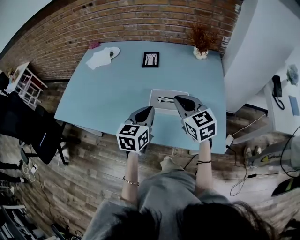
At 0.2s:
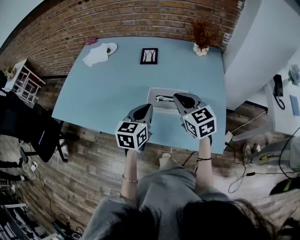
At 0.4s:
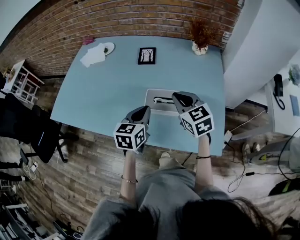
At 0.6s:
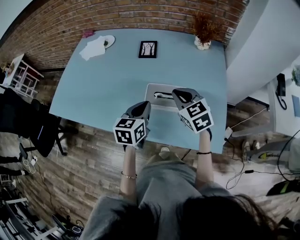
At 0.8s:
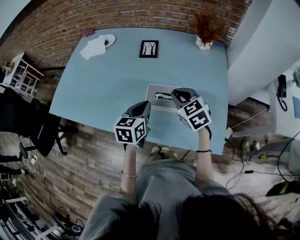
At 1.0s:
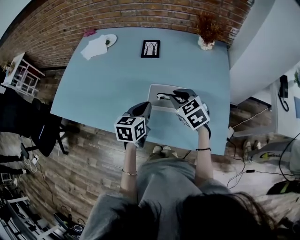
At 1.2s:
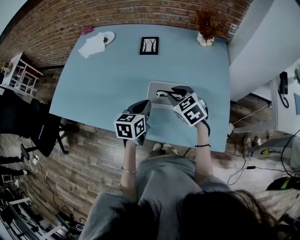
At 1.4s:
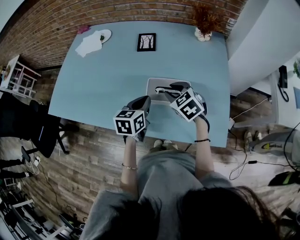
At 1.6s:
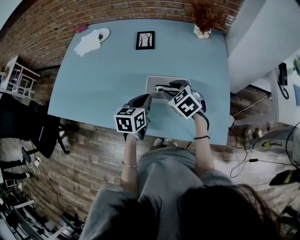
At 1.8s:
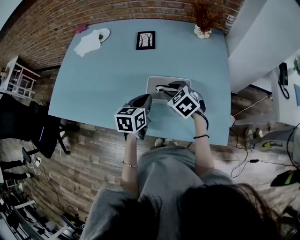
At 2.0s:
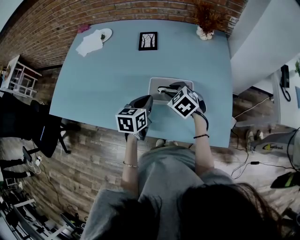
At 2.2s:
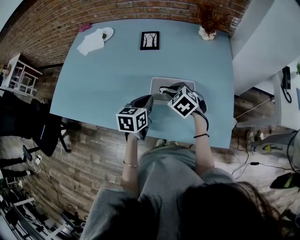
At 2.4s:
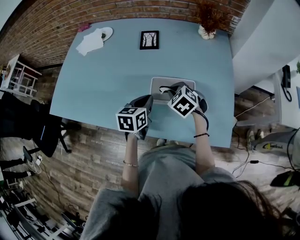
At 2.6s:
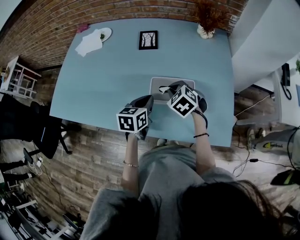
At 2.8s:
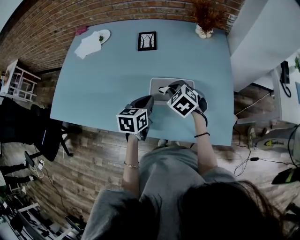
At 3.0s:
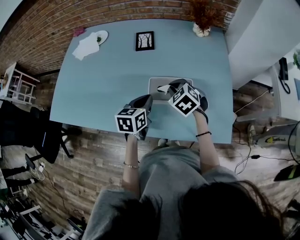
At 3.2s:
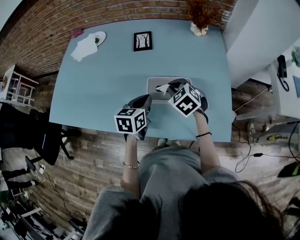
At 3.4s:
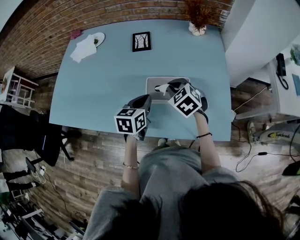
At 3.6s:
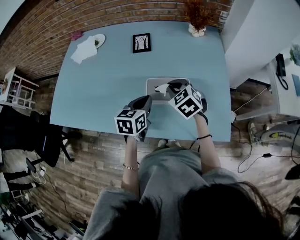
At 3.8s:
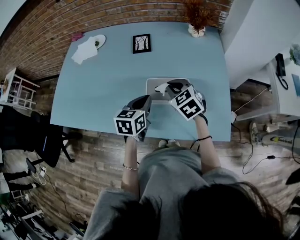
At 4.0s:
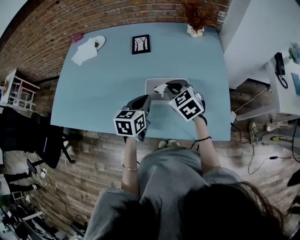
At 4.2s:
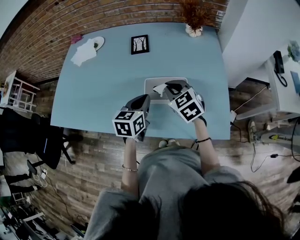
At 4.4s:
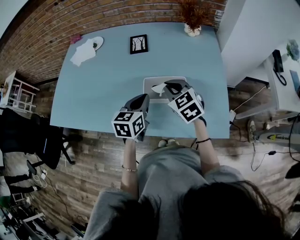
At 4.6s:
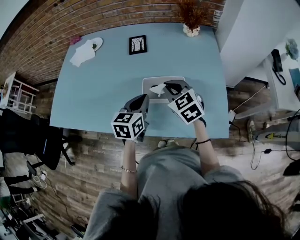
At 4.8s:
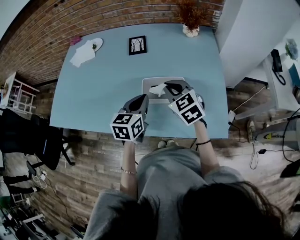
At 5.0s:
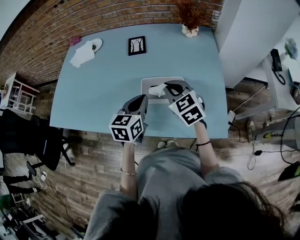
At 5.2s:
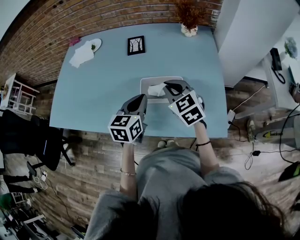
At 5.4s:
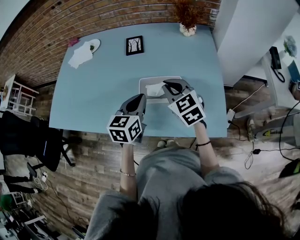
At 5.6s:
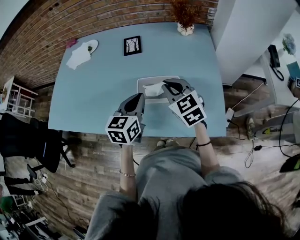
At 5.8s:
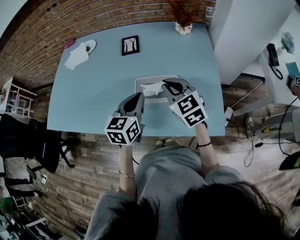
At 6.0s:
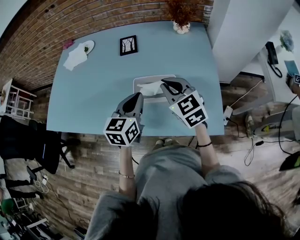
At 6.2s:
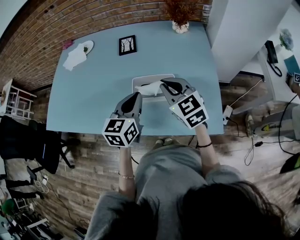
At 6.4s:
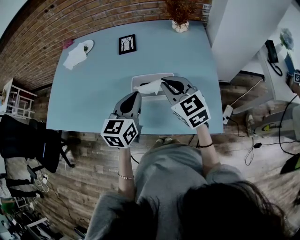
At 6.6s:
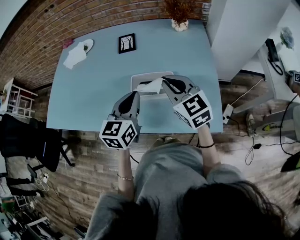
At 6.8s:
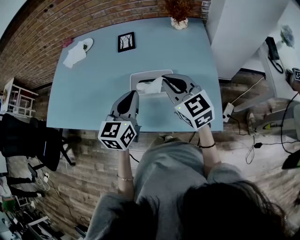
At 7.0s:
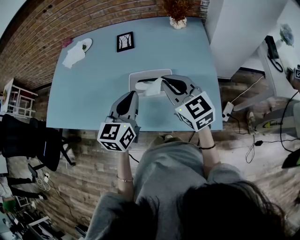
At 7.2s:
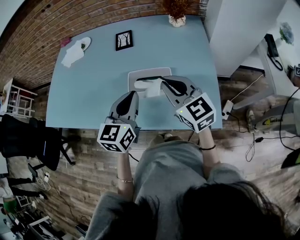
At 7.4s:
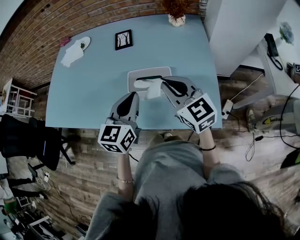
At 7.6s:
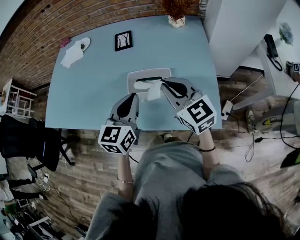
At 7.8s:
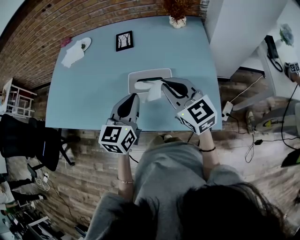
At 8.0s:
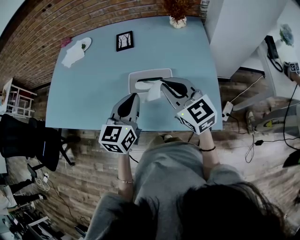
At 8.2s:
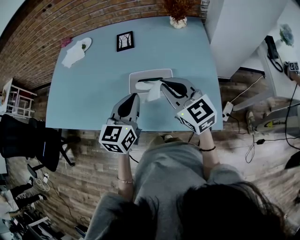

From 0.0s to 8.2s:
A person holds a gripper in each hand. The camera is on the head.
From 0.0s to 1.6s: The grippers both shift downward and forward by some 15 cm. The right gripper rotates about 30 degrees, and opens its fingers.
From 1.6s to 3.2s: The right gripper closes its fingers.
From 3.2s to 5.0s: The grippers both shift upward by approximately 5 cm. The right gripper changes its angle by some 20 degrees.
From 5.0s to 6.6s: The right gripper heads upward, covering some 5 cm. Meanwhile the left gripper ends up roughly 5 cm from where it was.
From 6.6s to 8.2s: The grippers move only a little.

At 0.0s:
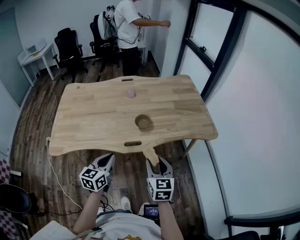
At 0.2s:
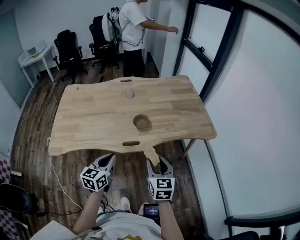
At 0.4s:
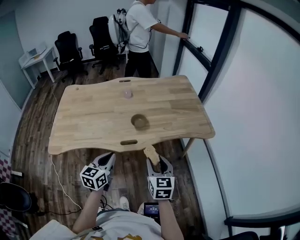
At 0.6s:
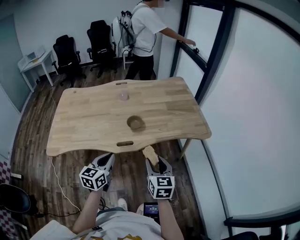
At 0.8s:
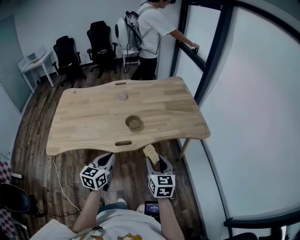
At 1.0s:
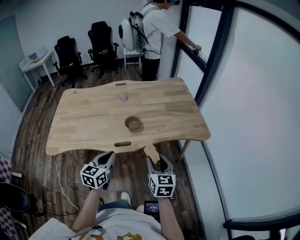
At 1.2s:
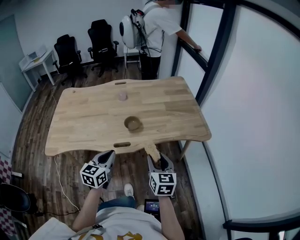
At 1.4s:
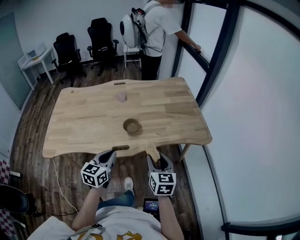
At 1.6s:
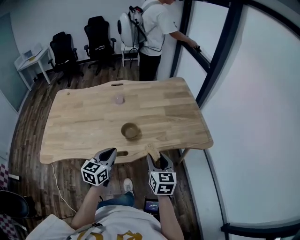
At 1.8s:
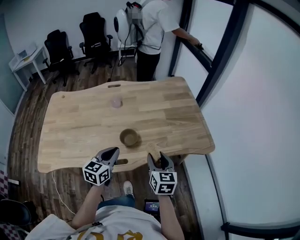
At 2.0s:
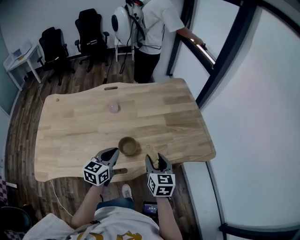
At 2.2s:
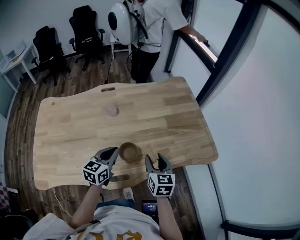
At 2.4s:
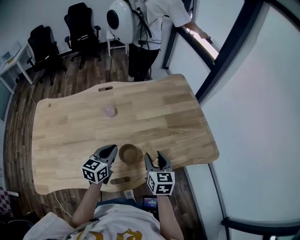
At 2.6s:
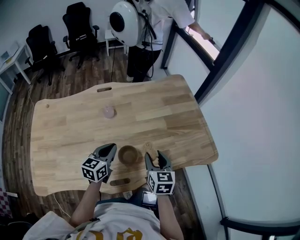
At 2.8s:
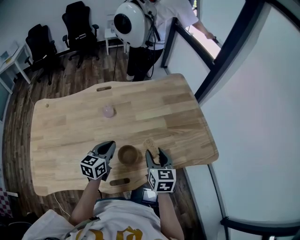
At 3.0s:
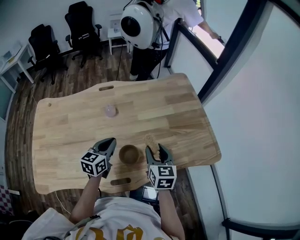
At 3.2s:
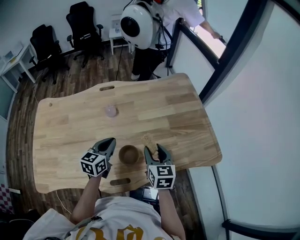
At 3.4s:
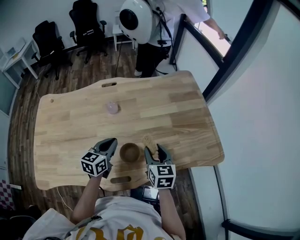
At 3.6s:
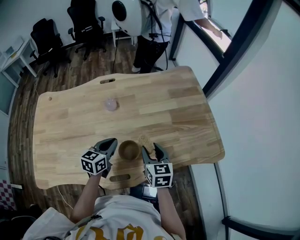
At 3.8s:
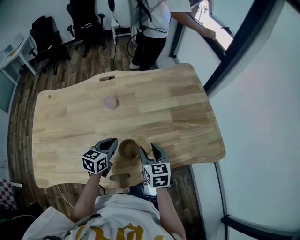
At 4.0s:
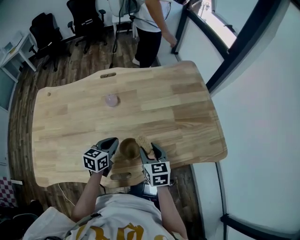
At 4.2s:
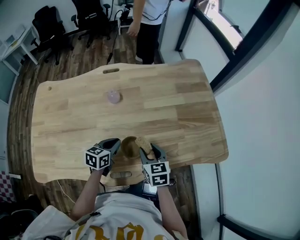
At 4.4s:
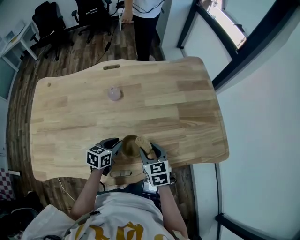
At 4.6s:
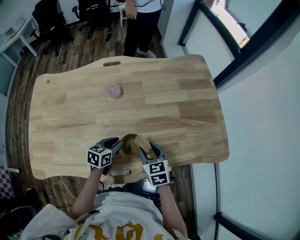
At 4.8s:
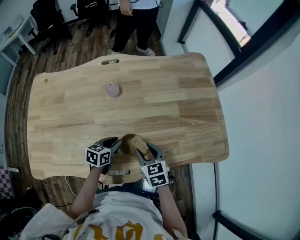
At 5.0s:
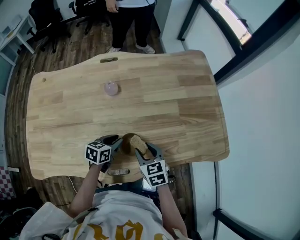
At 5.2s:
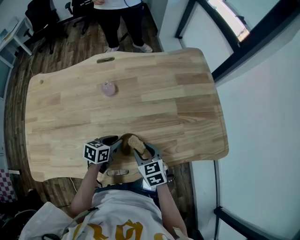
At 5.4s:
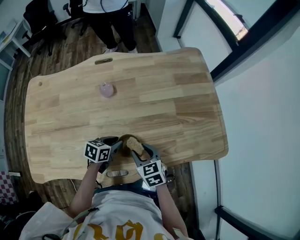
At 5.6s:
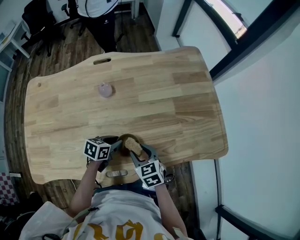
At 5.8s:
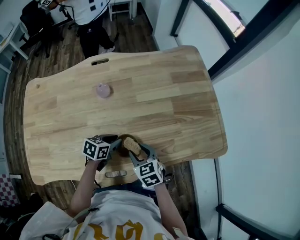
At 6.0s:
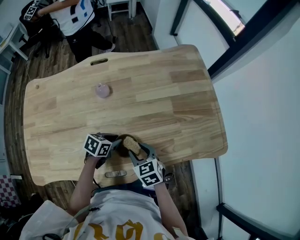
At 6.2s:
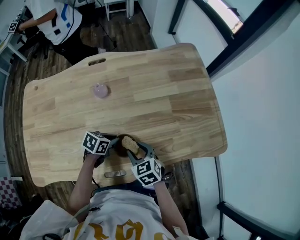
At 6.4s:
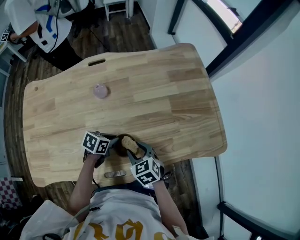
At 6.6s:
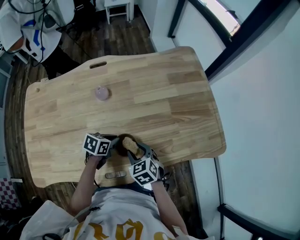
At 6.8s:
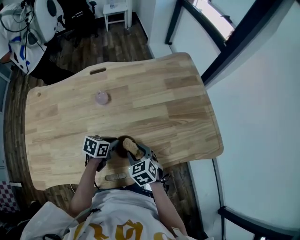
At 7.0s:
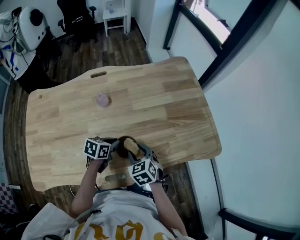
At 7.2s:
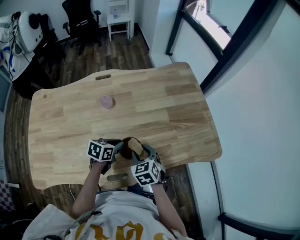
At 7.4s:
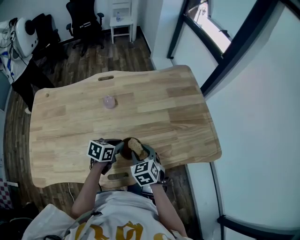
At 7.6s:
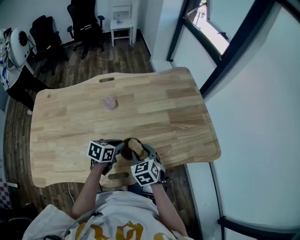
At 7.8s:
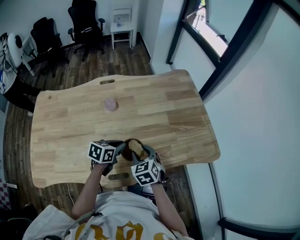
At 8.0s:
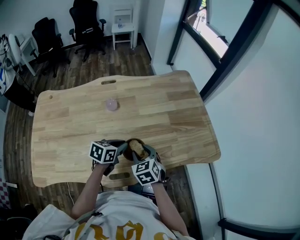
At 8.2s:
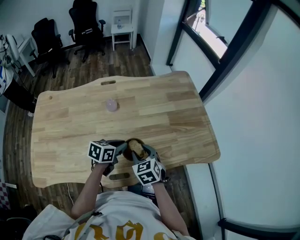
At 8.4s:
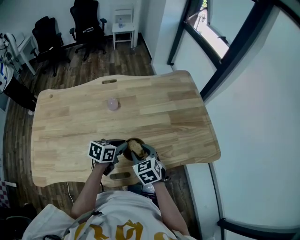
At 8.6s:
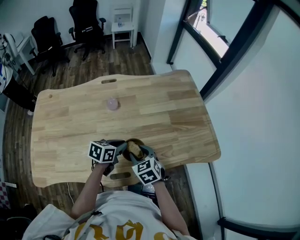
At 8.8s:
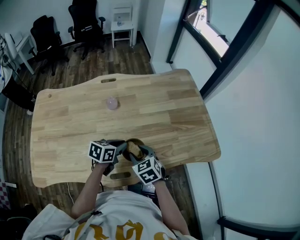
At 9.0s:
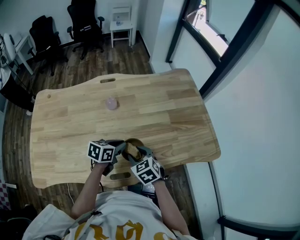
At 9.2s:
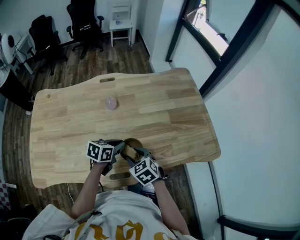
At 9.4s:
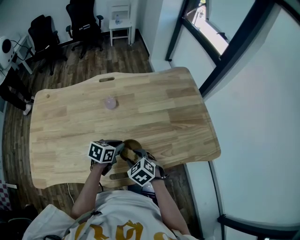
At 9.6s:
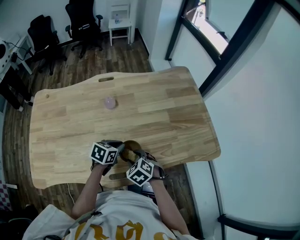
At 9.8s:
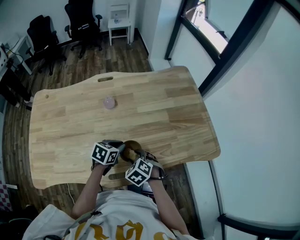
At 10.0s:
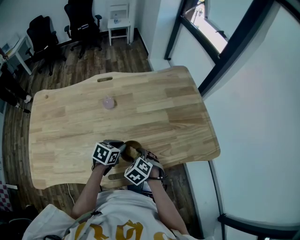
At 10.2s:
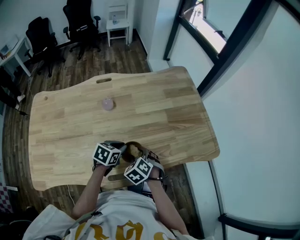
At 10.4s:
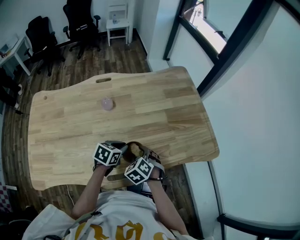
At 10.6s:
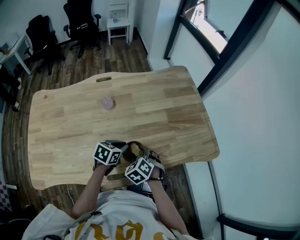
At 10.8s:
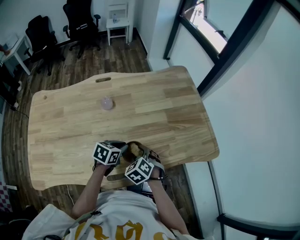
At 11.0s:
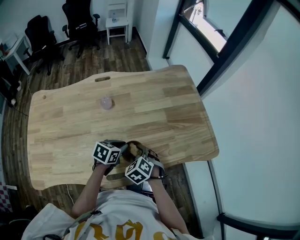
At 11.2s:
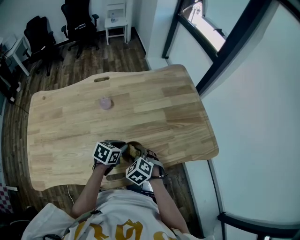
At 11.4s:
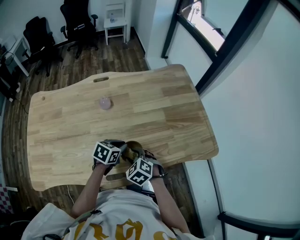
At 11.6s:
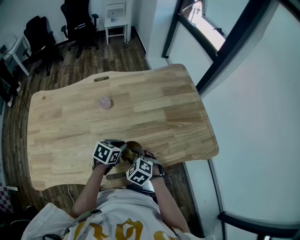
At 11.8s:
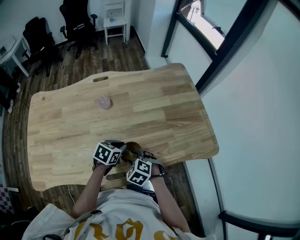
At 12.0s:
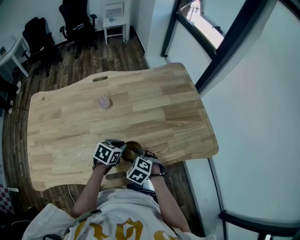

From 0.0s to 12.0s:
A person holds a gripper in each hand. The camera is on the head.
From 0.0s to 1.6s: The grippers both shift forward and to the right by some 15 cm.
From 1.6s to 3.0s: The grippers both shift forward by roughly 25 cm.
From 3.0s to 4.4s: The right gripper shifts about 10 cm downward and to the left, and rotates some 20 degrees. Meanwhile the left gripper moves downward, some 15 cm, and turns by about 20 degrees.
From 4.4s to 6.0s: The left gripper moves about 5 cm, and changes its angle by roughly 20 degrees.
From 6.0s to 7.6s: The right gripper travels upward by roughly 5 cm. The left gripper is displaced upward by about 10 cm.
From 7.6s to 9.0s: There are only small adjustments of the grippers.
From 9.0s to 10.4s: The right gripper rotates roughly 20 degrees.
From 10.4s to 12.0s: The grippers stay close to where they were, moving slightly.

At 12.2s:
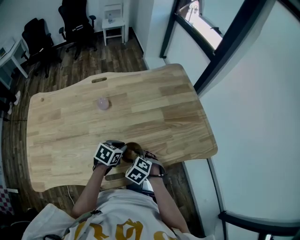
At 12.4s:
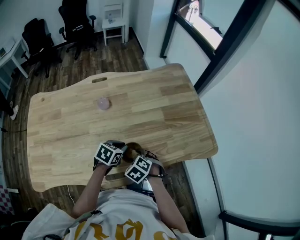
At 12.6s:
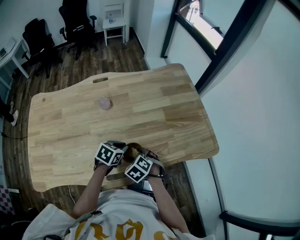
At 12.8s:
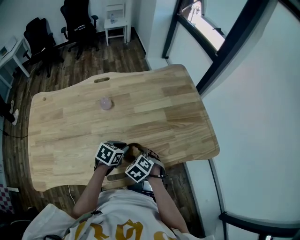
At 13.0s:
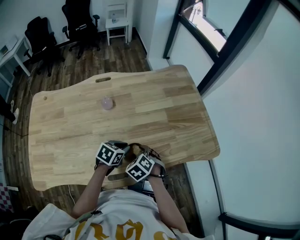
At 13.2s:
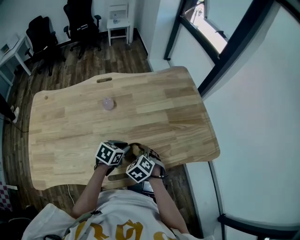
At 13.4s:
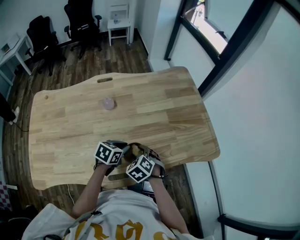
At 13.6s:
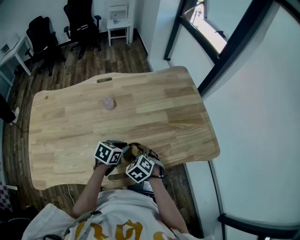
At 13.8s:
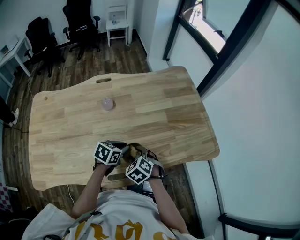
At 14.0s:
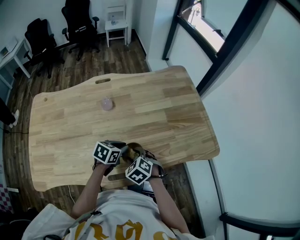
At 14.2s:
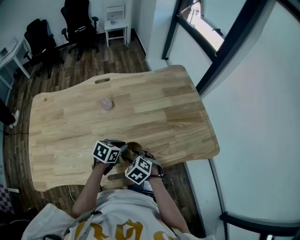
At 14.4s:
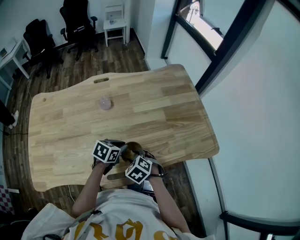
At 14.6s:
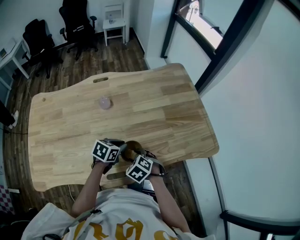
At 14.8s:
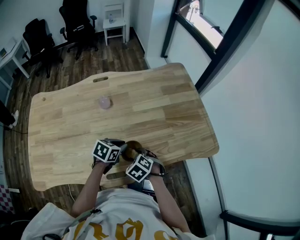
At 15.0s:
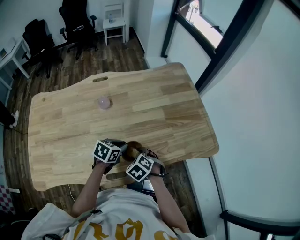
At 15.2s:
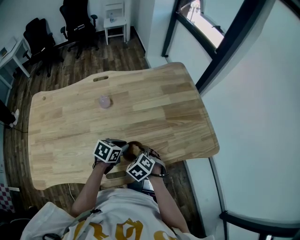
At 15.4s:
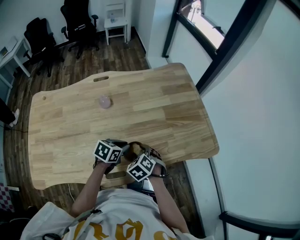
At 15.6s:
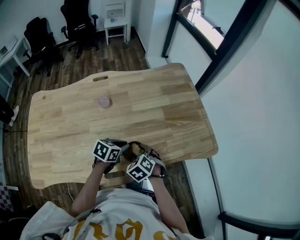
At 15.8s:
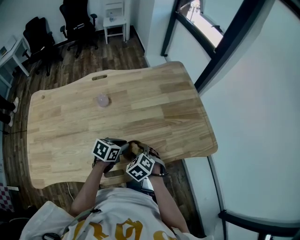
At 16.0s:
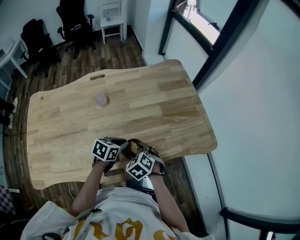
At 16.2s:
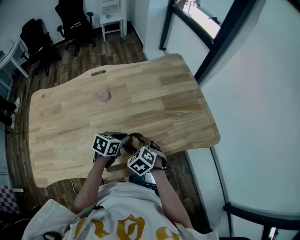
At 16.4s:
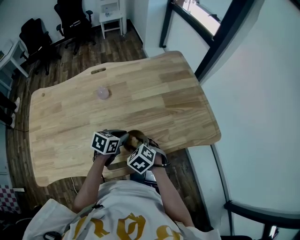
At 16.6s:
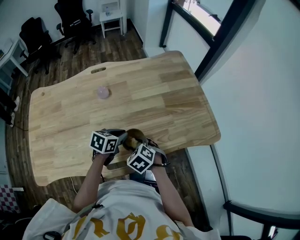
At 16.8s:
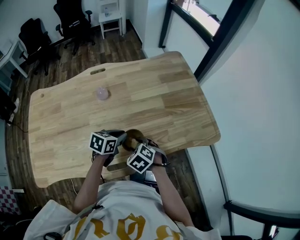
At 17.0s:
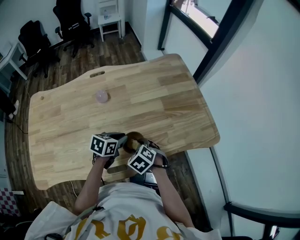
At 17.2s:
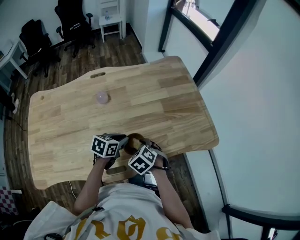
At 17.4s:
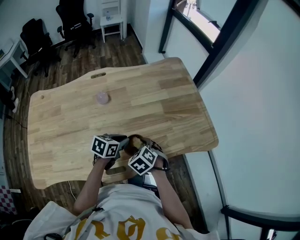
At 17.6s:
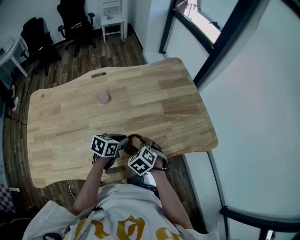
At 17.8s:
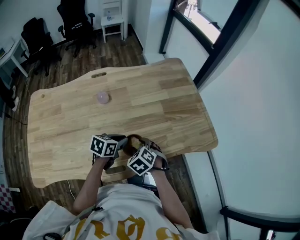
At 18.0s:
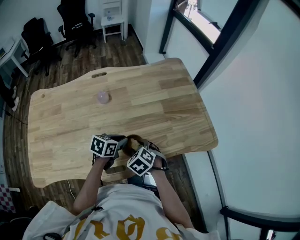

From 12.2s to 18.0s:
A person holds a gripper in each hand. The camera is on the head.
From 12.2s to 18.0s: The grippers move only a little.
